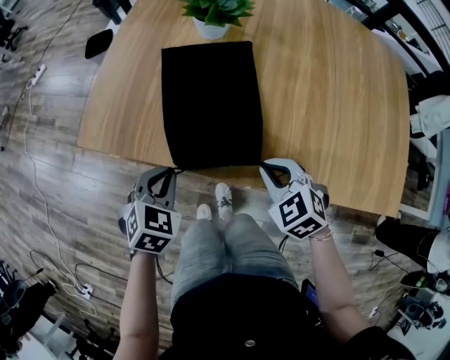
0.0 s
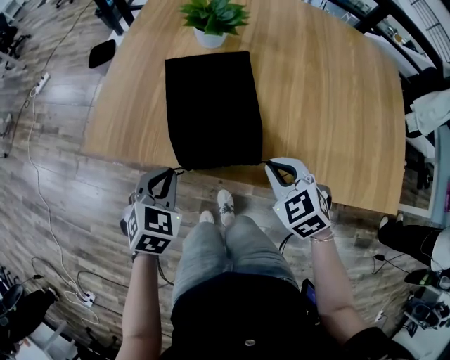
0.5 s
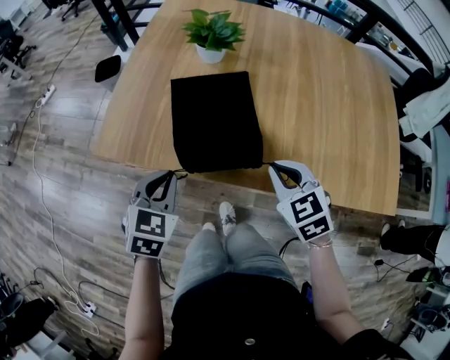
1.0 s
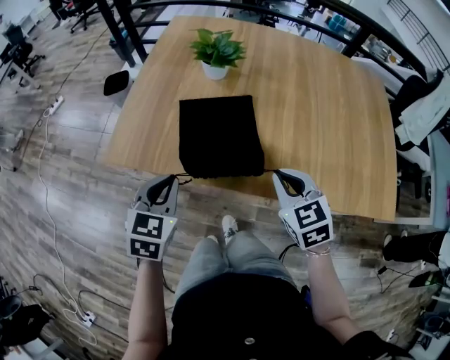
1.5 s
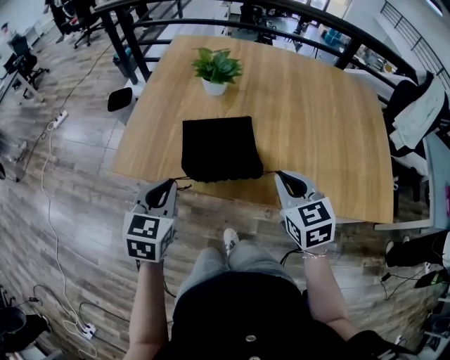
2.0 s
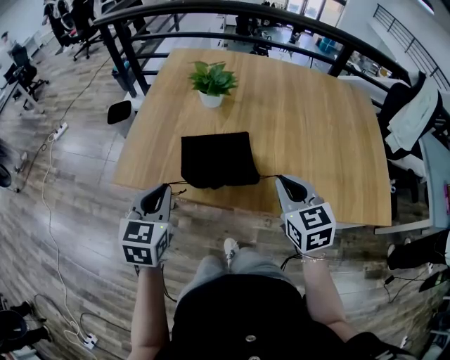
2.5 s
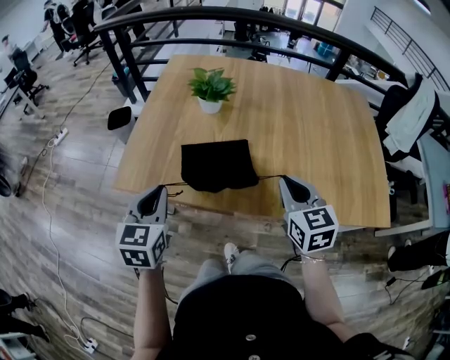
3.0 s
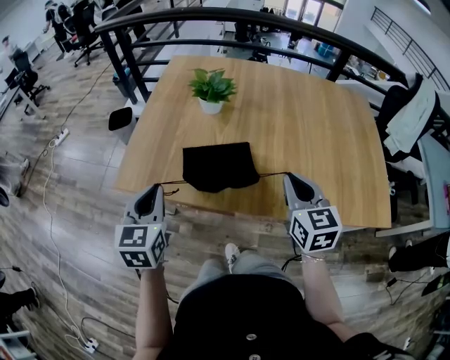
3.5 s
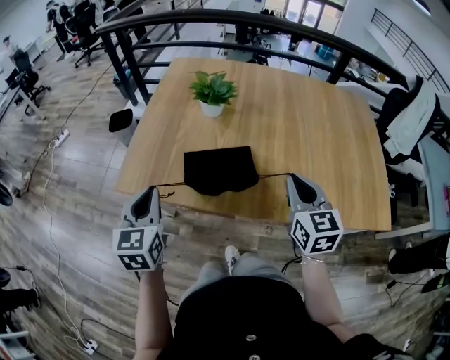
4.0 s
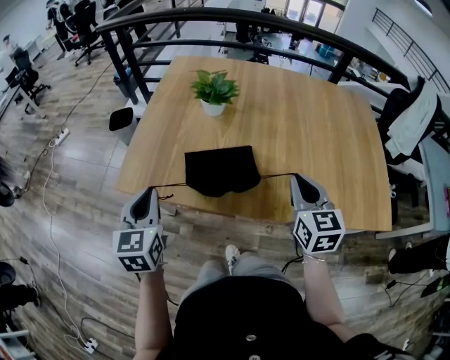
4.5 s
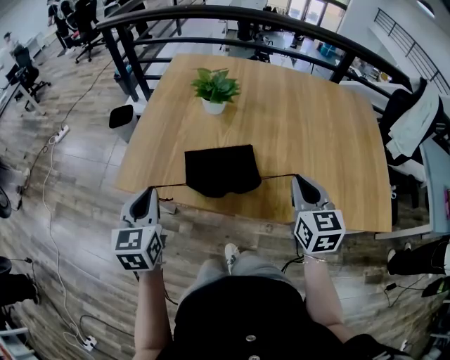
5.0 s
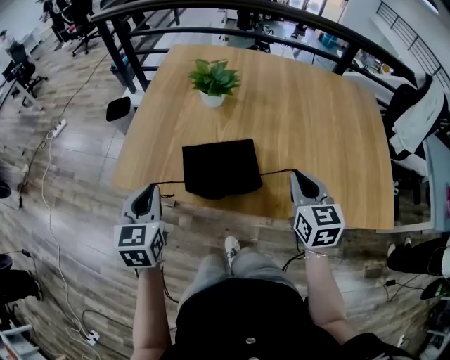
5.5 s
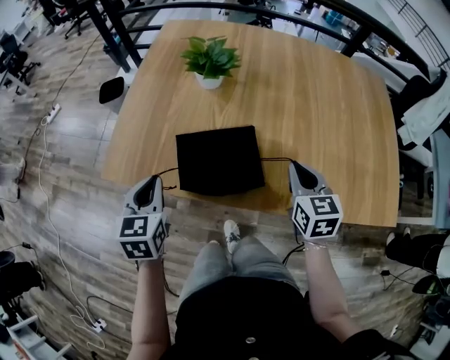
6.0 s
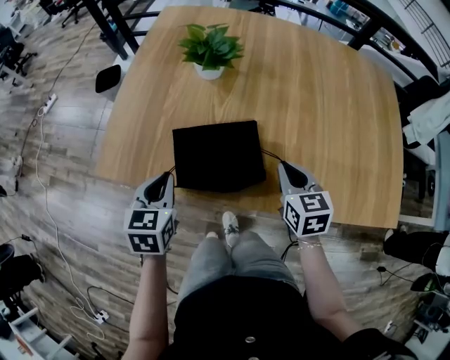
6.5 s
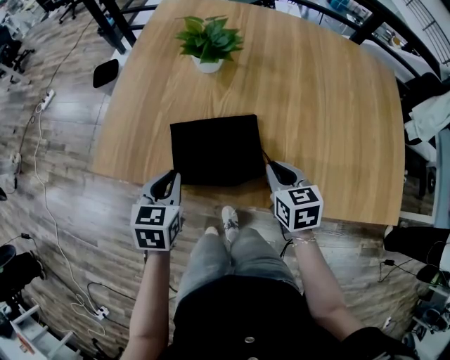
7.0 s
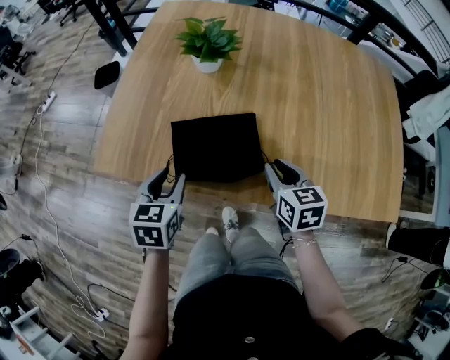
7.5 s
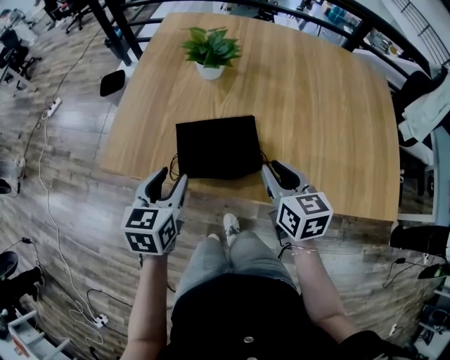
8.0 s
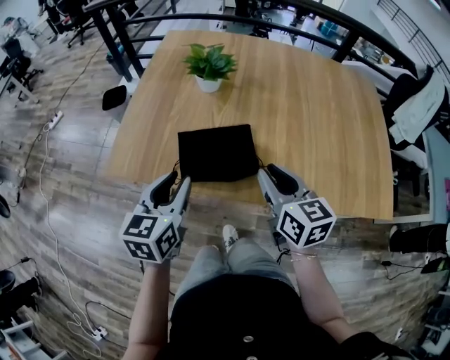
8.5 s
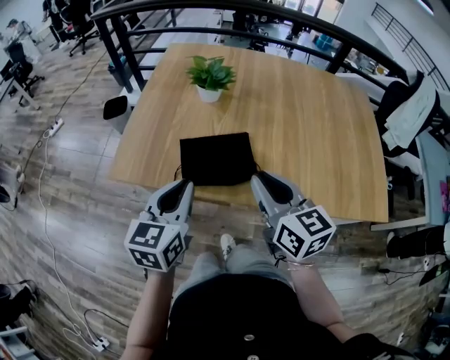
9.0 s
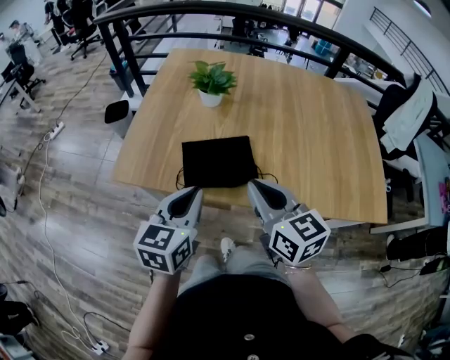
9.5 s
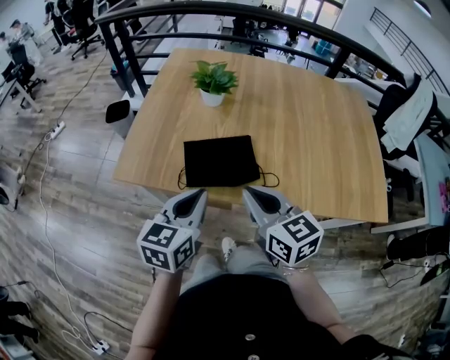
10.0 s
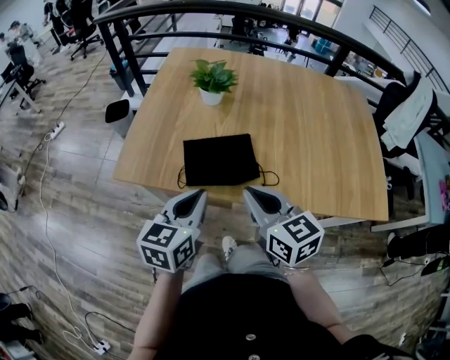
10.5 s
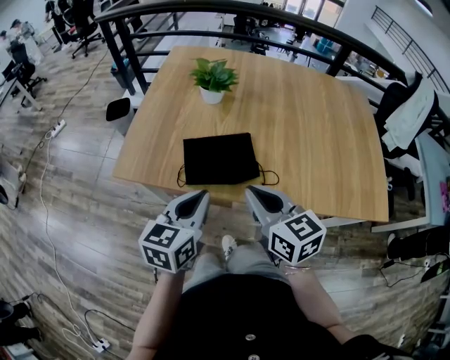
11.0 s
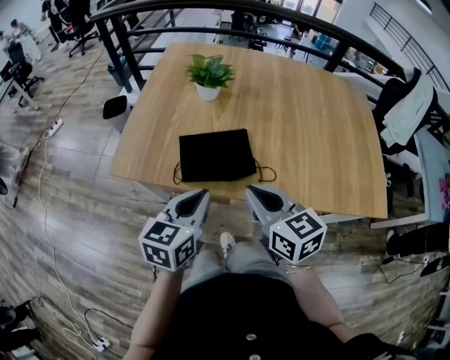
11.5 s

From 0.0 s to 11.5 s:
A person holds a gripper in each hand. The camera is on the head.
From 0.0 s to 2.0 s: Both grippers travel together upward, roughly 15 cm. The right gripper turns by approximately 40 degrees, while the left gripper changes its angle by about 30 degrees.
From 2.0 s to 4.0 s: The left gripper changes place by about 5 cm; the right gripper changes place by approximately 5 cm.
From 4.0 s to 6.0 s: The right gripper moves downward and forward, about 10 cm, while the left gripper is displaced downward by about 10 cm.
From 6.0 s to 7.5 s: The grippers both shift downward by roughly 5 cm. The left gripper opens, while the right gripper opens up.
From 7.5 s to 9.5 s: The right gripper is displaced upward, backward and to the left by about 20 cm, swivels approximately 30 degrees, and closes, while the left gripper heads upward and backward, covering about 15 cm, changes its angle by approximately 20 degrees, and closes up.
From 9.5 s to 11.5 s: The grippers make only small movements.

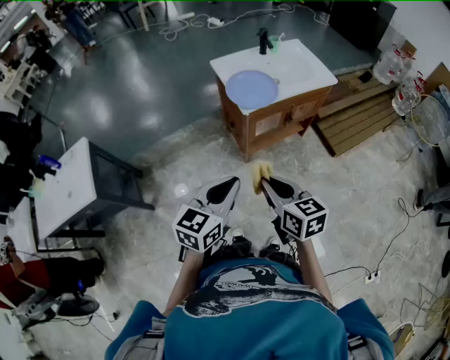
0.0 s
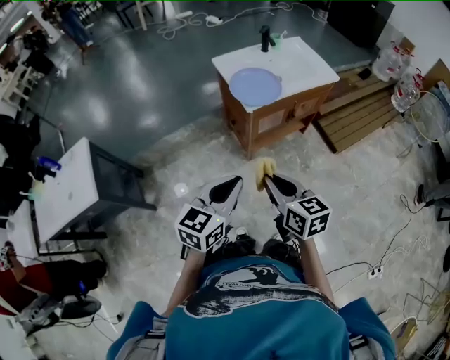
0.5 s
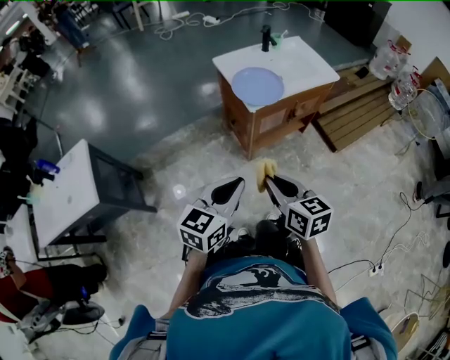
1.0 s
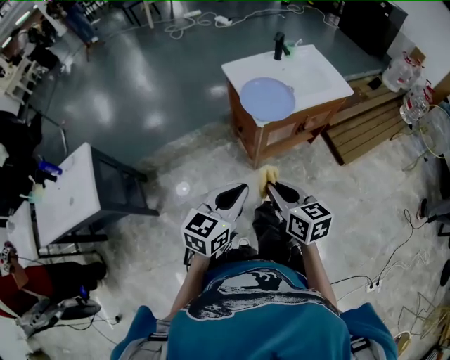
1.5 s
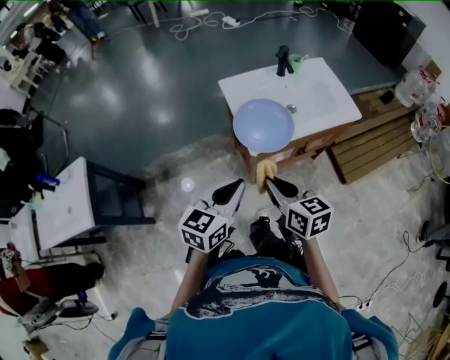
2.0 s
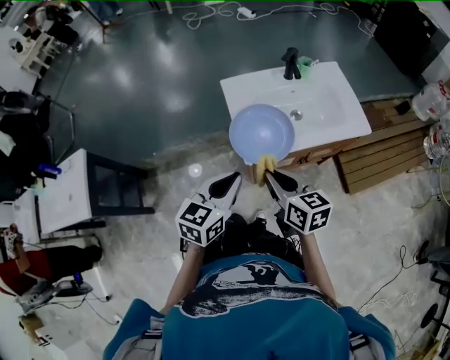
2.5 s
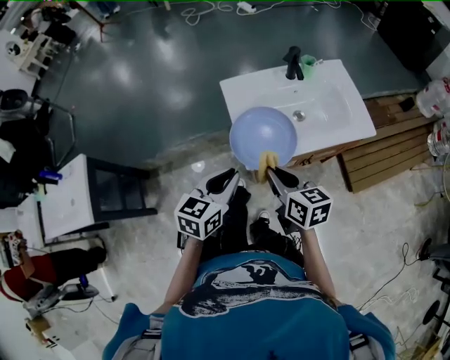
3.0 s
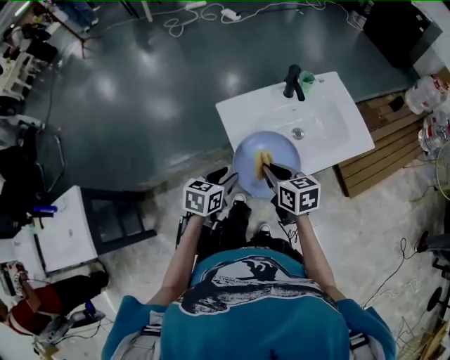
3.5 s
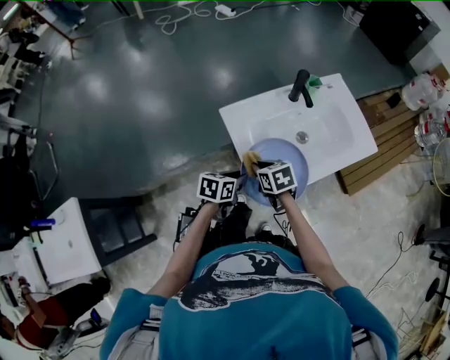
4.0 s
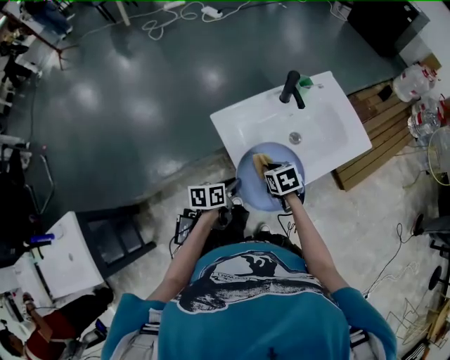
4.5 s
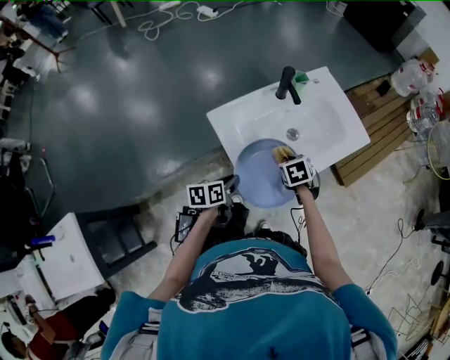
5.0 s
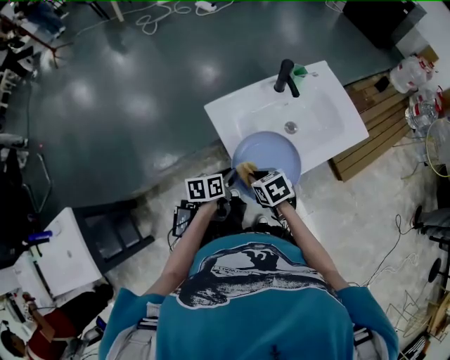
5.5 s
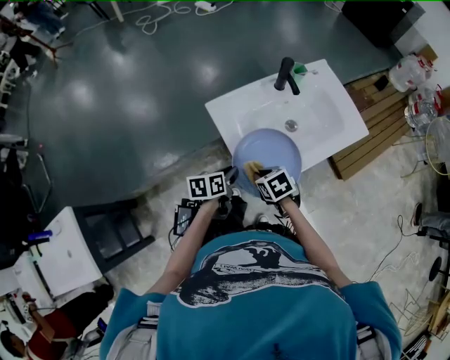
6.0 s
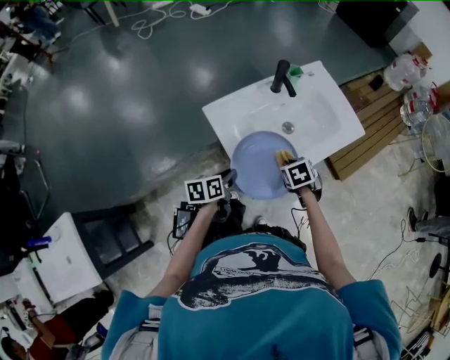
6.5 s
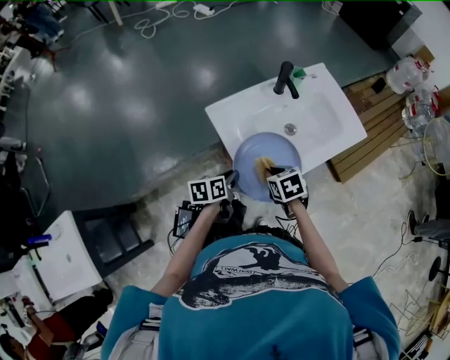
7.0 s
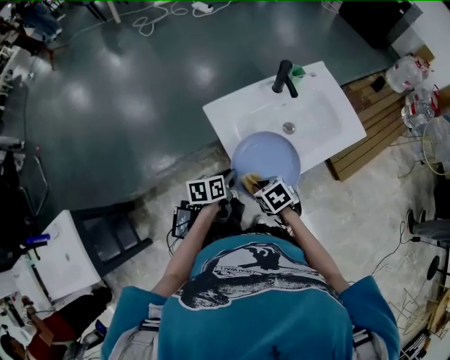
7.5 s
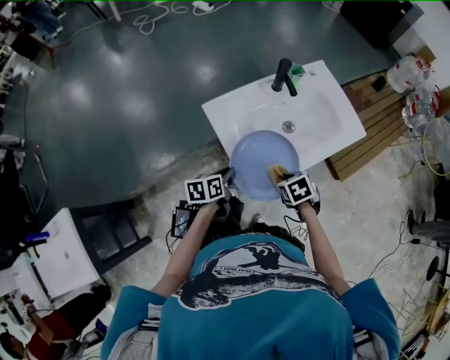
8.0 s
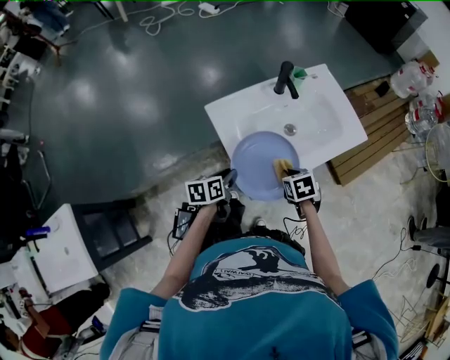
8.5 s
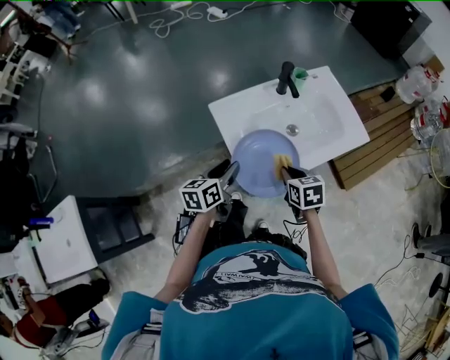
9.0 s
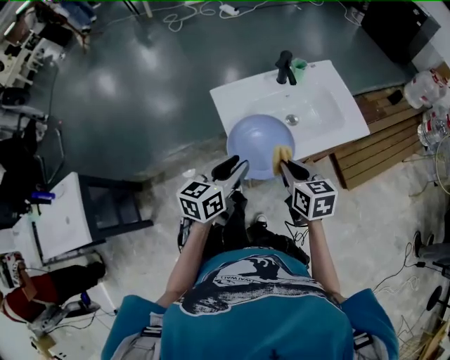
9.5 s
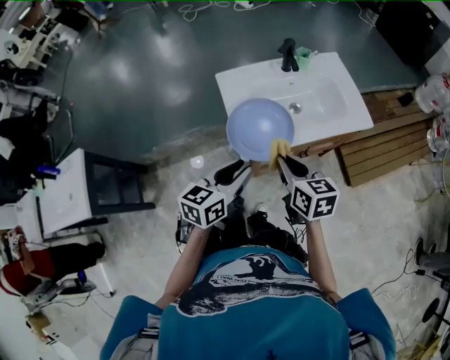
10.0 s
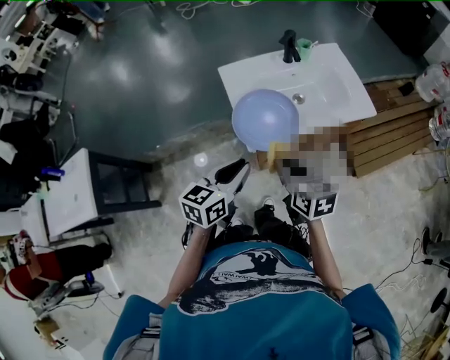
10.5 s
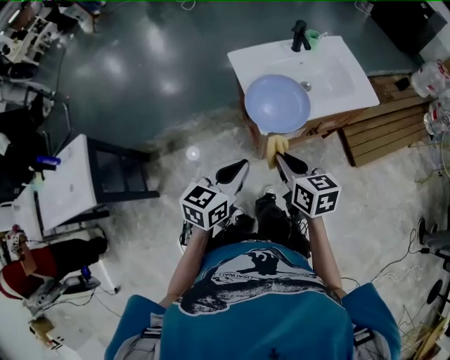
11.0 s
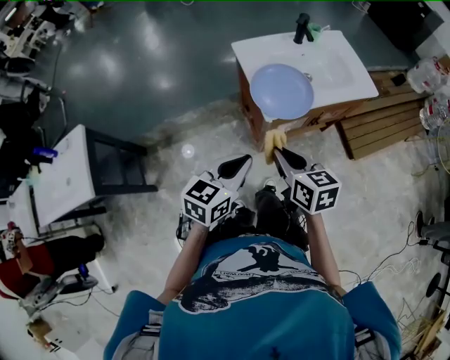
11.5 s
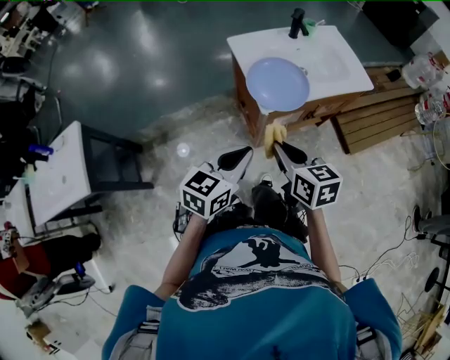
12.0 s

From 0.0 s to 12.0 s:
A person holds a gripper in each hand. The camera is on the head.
From 0.0 s to 2.0 s: The grippers both shift forward by some 20 cm.
From 2.0 s to 4.0 s: Both grippers travel together forward and downward, about 35 cm. The right gripper turns by about 30 degrees. Meanwhile the left gripper changes its angle by roughly 40 degrees, and opens up.
From 4.0 s to 6.0 s: The right gripper goes some 5 cm backward, and travels to the right and back again, approximately 15 cm each way.
From 6.0 s to 8.0 s: The right gripper moves left and right over some 10 cm, changing direction 2 times.
From 8.0 s to 10.0 s: The right gripper shifts approximately 20 cm upward and backward, and tilts its fingers roughly 40 degrees upward, while the left gripper goes approximately 25 cm upward, backward and to the right, and turns by some 30 degrees.
From 10.0 s to 12.0 s: Both grippers move backward and to the left, about 15 cm. The left gripper closes.

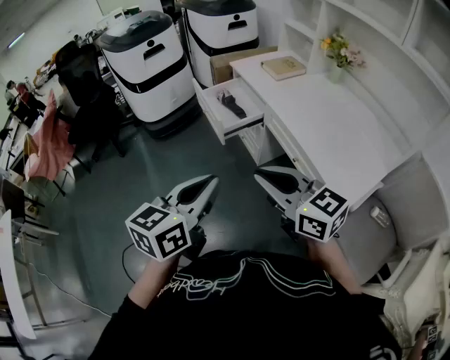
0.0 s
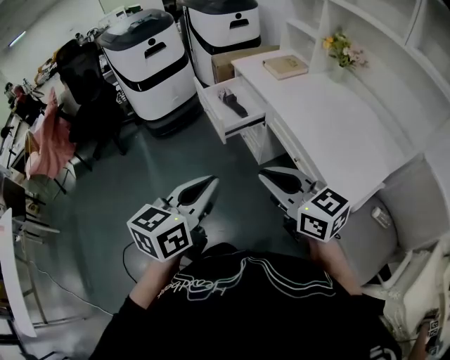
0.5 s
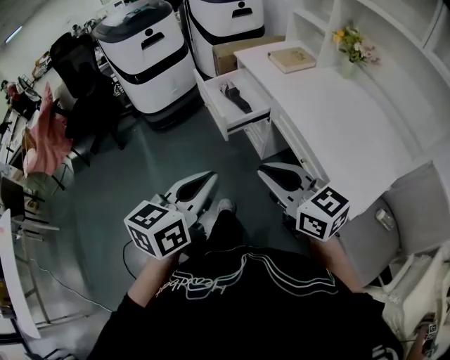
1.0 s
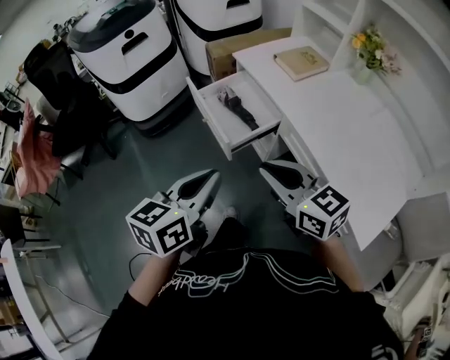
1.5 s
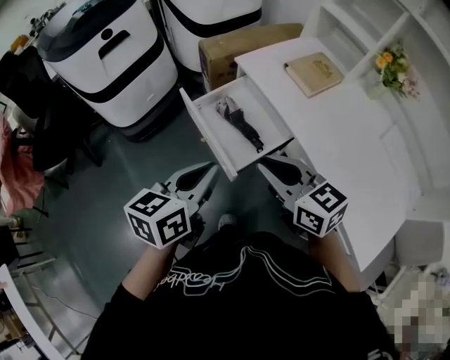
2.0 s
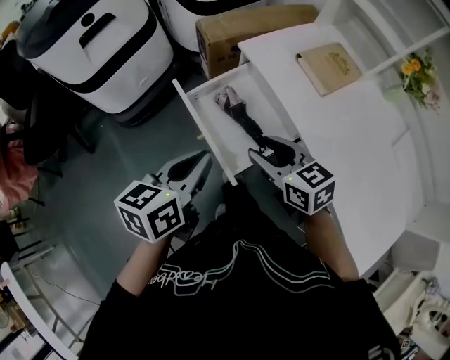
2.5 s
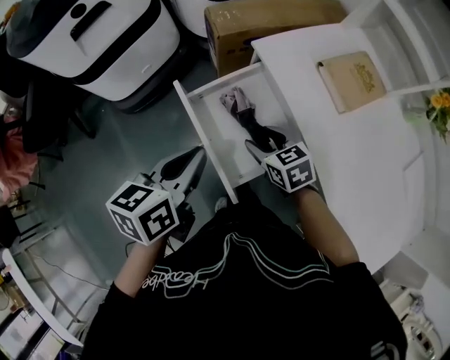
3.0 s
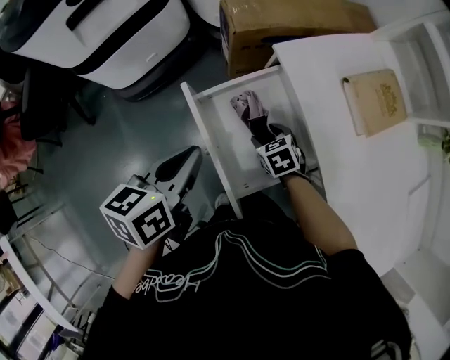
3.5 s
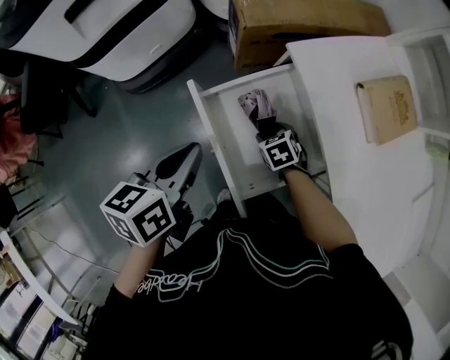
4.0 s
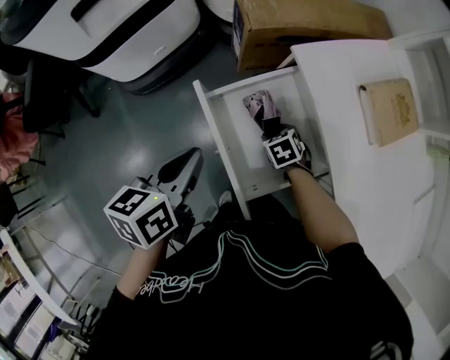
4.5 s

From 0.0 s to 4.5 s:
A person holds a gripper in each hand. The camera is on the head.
From 0.0 s to 2.0 s: Both grippers are carried forward, approximately 50 cm.
From 2.0 s to 4.5 s: The right gripper moves downward and forward, approximately 50 cm, tips its fingers downward by approximately 50 degrees, and opens its fingers. The left gripper is displaced forward and downward by about 30 cm, and changes its angle by roughly 30 degrees.
